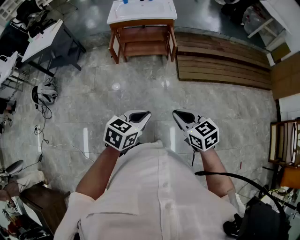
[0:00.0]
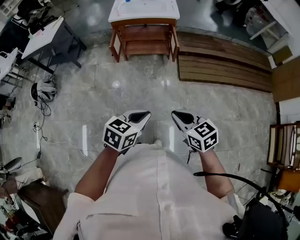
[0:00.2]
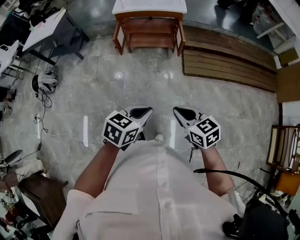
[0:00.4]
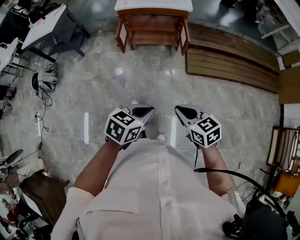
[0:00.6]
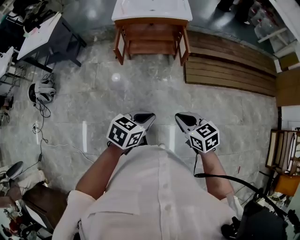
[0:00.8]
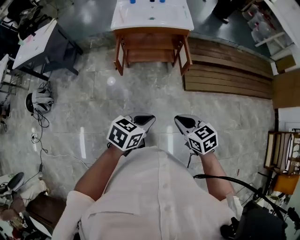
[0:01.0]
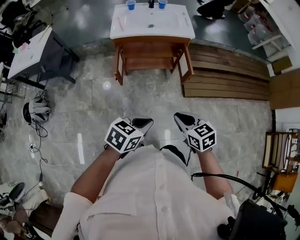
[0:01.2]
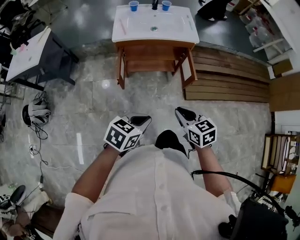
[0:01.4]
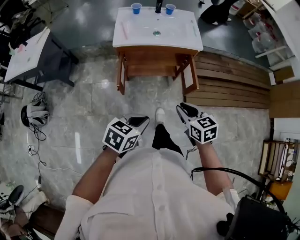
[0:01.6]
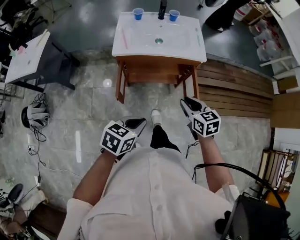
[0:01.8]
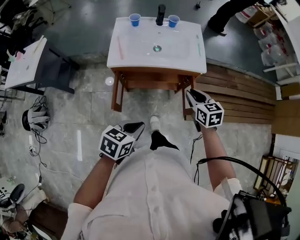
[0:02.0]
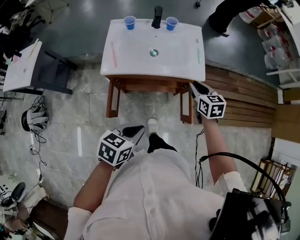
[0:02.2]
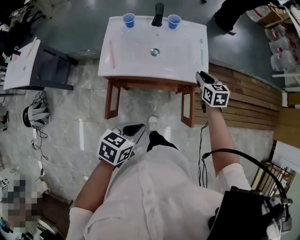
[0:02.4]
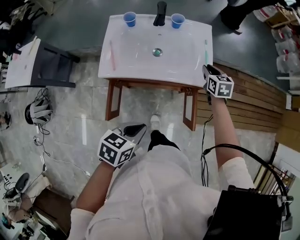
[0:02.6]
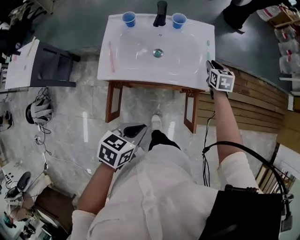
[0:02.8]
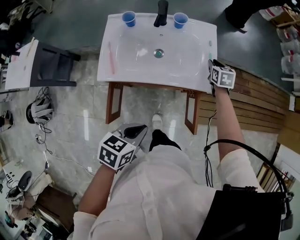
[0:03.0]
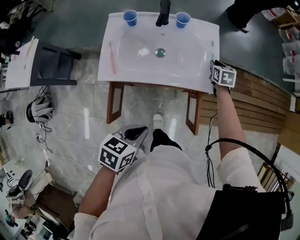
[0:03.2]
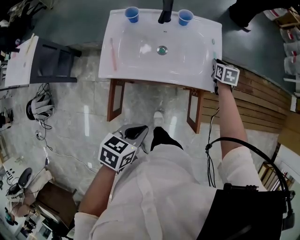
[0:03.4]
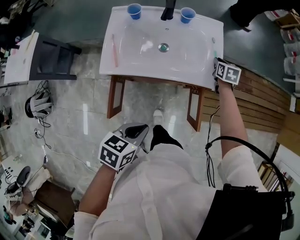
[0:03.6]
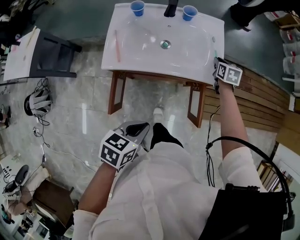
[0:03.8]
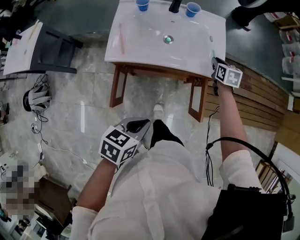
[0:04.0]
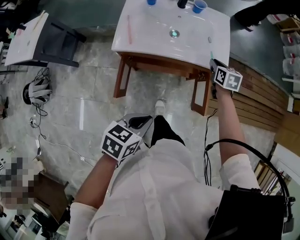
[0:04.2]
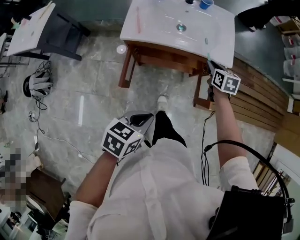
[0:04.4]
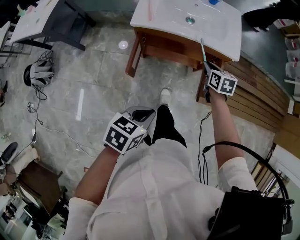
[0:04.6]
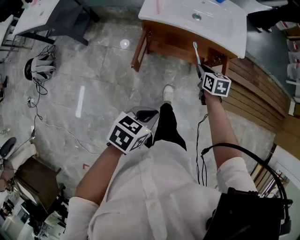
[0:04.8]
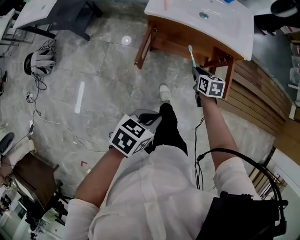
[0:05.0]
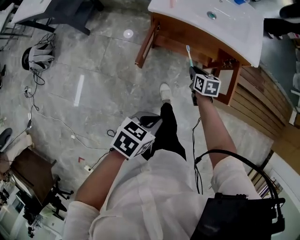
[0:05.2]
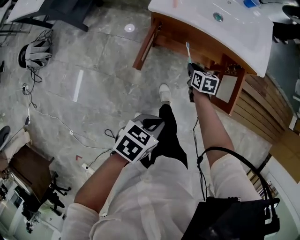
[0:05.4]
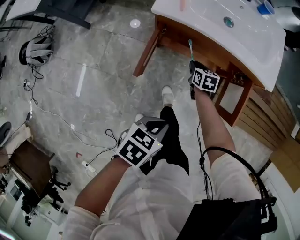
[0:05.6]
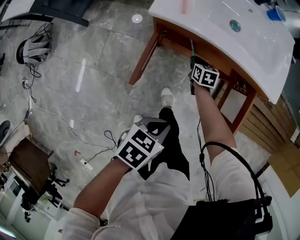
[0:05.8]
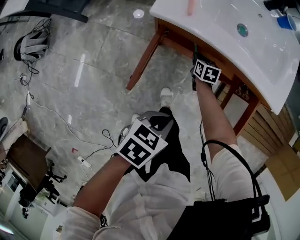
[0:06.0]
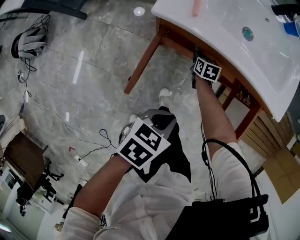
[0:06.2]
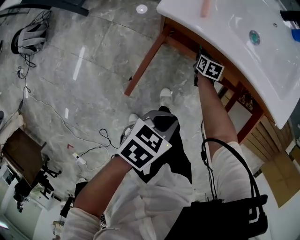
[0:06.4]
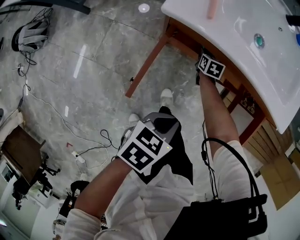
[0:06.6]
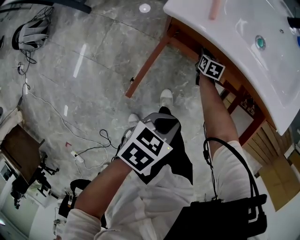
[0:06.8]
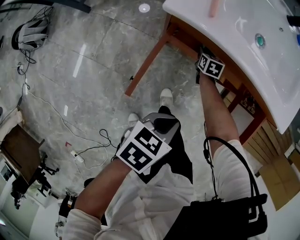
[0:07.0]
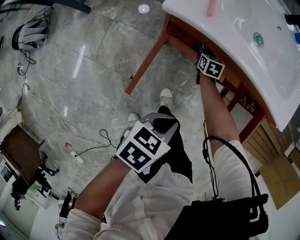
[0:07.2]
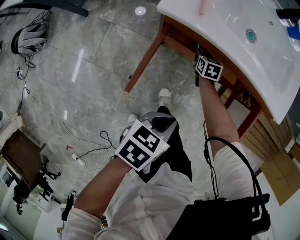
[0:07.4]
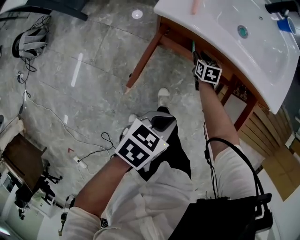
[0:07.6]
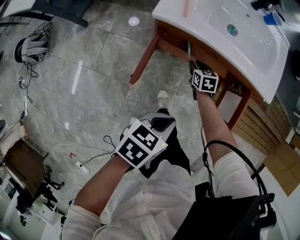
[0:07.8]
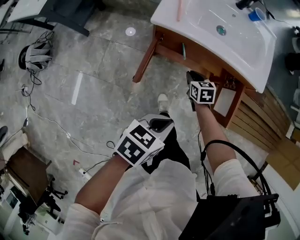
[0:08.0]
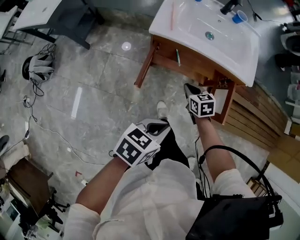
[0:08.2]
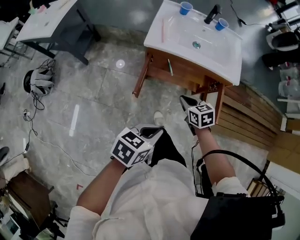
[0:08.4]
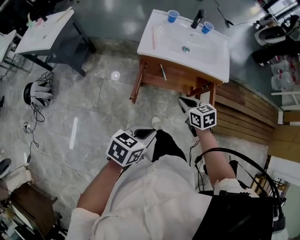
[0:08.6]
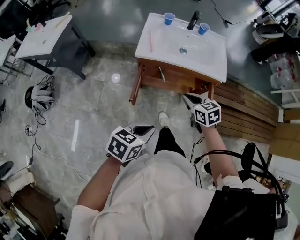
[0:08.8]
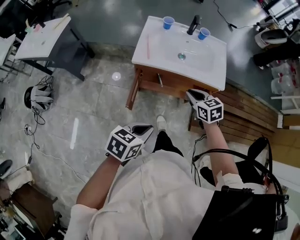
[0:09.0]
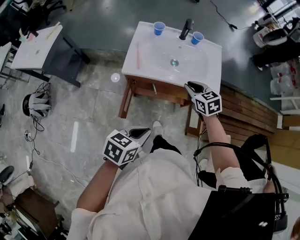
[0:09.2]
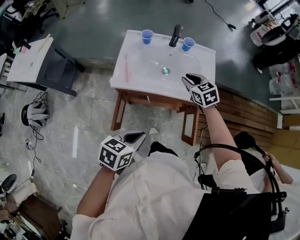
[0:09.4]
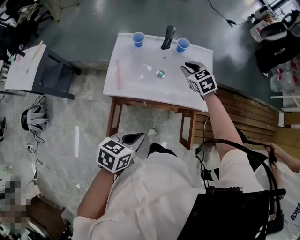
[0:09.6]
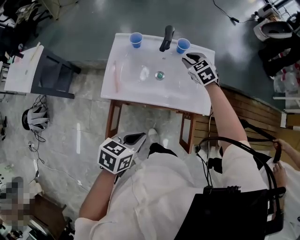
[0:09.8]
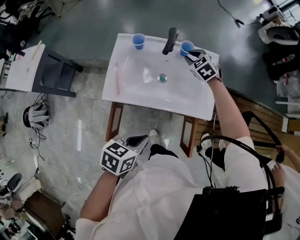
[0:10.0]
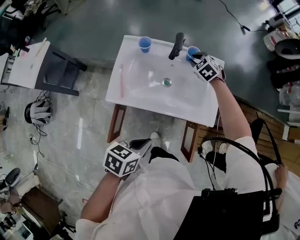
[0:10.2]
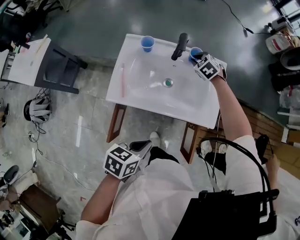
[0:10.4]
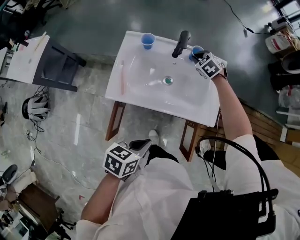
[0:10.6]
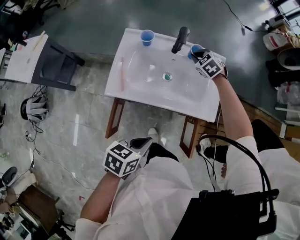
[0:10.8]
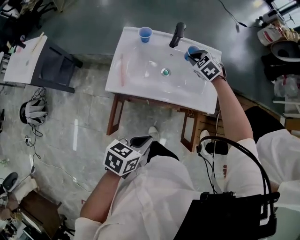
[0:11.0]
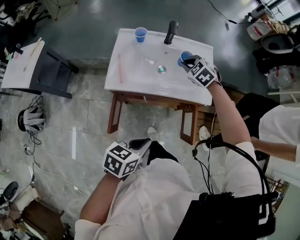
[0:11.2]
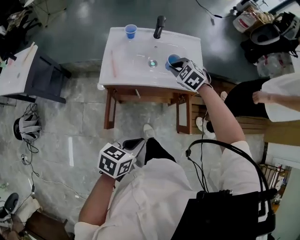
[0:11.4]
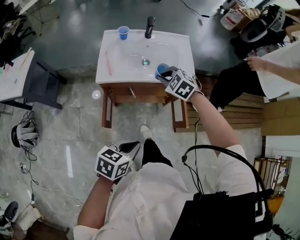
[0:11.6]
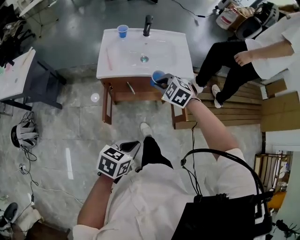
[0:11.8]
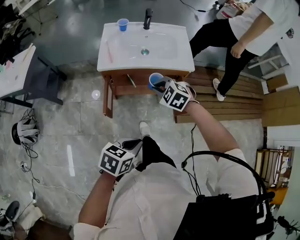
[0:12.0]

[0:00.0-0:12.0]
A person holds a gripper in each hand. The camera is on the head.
0:00.0 to 0:01.6: The two grippers travel together, forward and to the left, roughly 40 cm.
0:01.6 to 0:03.0: The left gripper shifts about 30 cm forward; the right gripper goes approximately 60 cm forward.
0:03.0 to 0:04.4: Both grippers move backward, about 20 cm.
0:04.4 to 0:06.0: The right gripper moves downward and to the left, approximately 40 cm. Meanwhile the left gripper is displaced downward by about 20 cm.
0:06.0 to 0:07.6: The right gripper goes downward and returns, about 5 cm each way.
0:07.6 to 0:09.0: The right gripper heads upward, covering approximately 40 cm, and closes up. The left gripper goes roughly 20 cm upward.
0:09.0 to 0:10.4: The right gripper heads forward, covering approximately 40 cm, and changes its angle by some 40 degrees. The left gripper shifts approximately 20 cm forward.
0:10.4 to 0:12.0: The left gripper heads backward, covering approximately 30 cm, while the right gripper travels backward by approximately 50 cm.

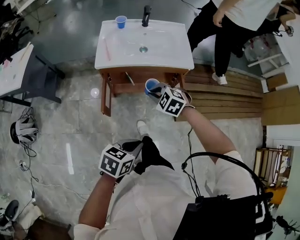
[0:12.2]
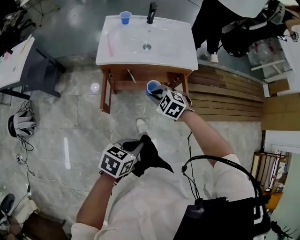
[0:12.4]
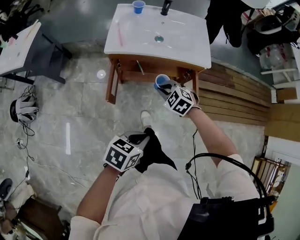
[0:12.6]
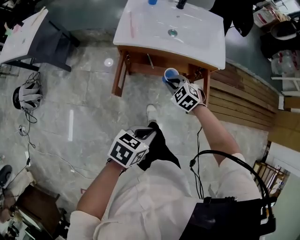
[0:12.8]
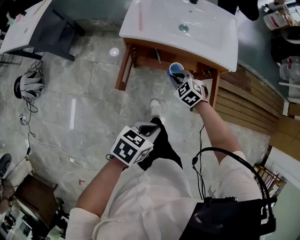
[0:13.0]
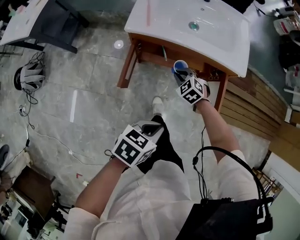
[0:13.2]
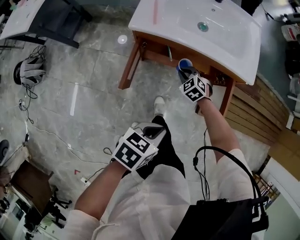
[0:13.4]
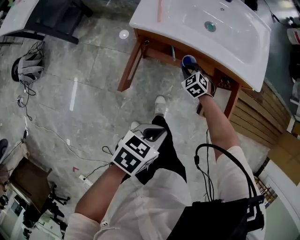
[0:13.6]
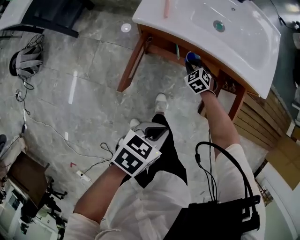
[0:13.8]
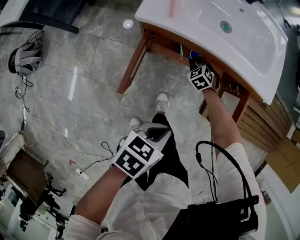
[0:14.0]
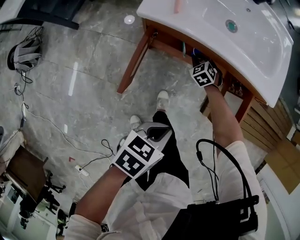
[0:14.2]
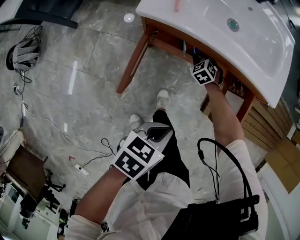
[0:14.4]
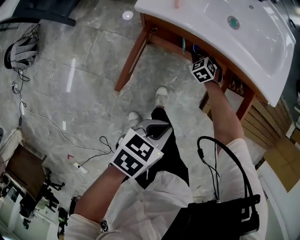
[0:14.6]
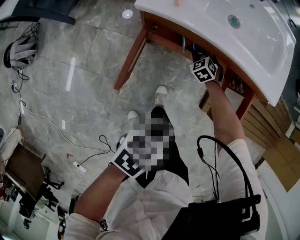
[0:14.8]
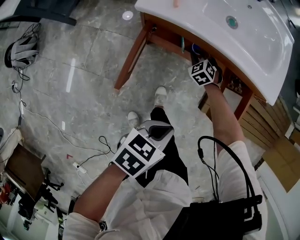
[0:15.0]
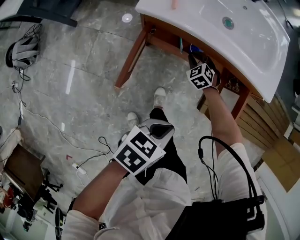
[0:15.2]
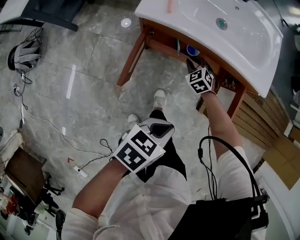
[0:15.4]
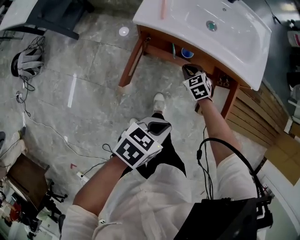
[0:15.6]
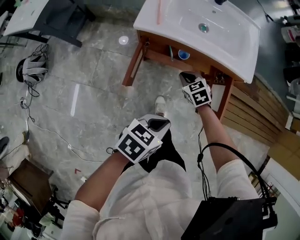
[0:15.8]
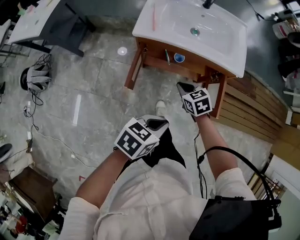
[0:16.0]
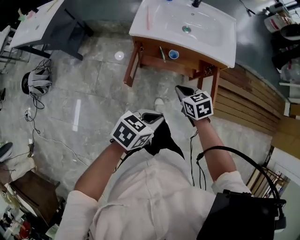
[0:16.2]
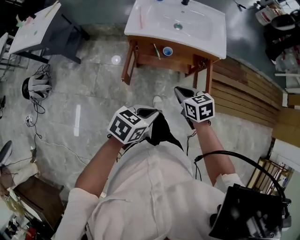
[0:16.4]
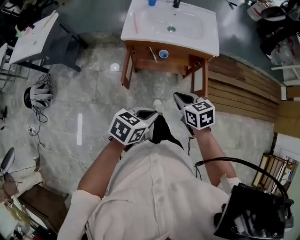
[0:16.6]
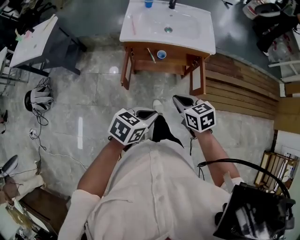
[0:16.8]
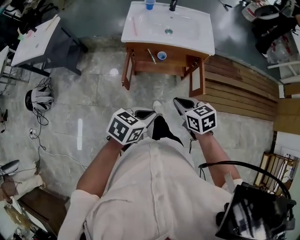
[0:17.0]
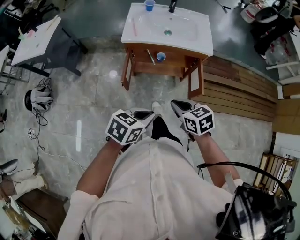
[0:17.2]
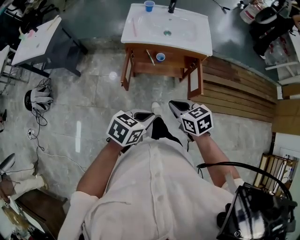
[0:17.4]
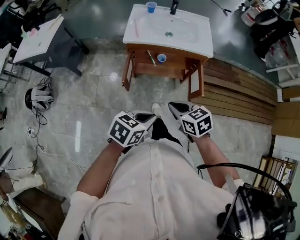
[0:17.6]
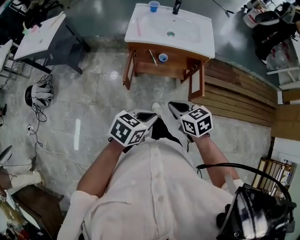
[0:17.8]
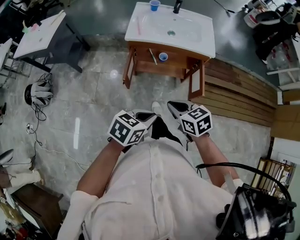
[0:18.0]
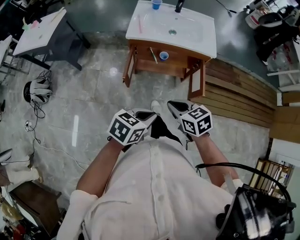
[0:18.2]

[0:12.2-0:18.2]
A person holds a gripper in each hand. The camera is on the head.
0:12.2 to 0:13.8: The left gripper travels downward and forward by roughly 20 cm, while the right gripper goes some 35 cm downward and forward.
0:15.2 to 0:16.6: The right gripper goes about 50 cm upward and backward, and rotates around the line of its fingers by about 50 degrees, clockwise from behind; the left gripper moves upward and backward, some 20 cm.
0:16.6 to 0:18.2: The right gripper goes about 10 cm backward.

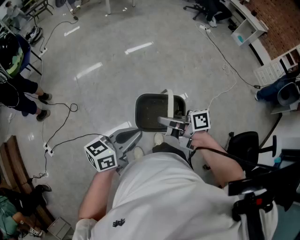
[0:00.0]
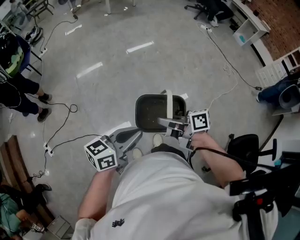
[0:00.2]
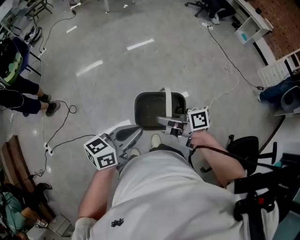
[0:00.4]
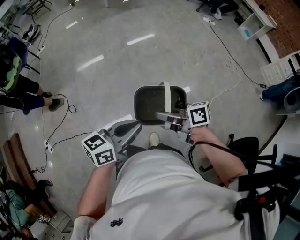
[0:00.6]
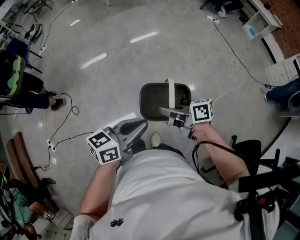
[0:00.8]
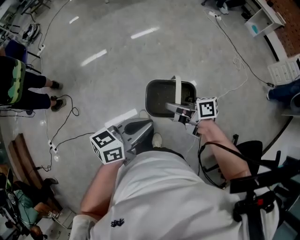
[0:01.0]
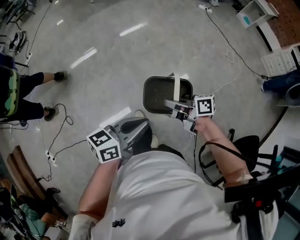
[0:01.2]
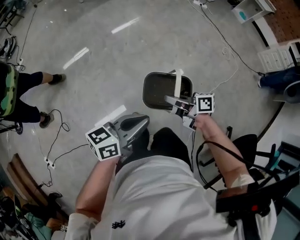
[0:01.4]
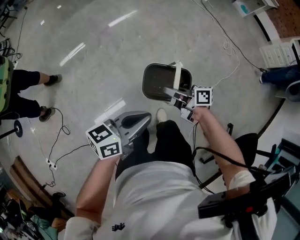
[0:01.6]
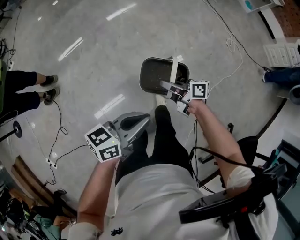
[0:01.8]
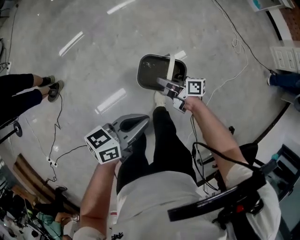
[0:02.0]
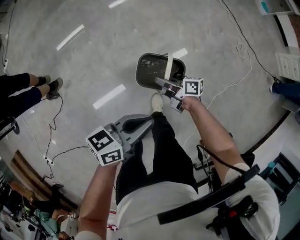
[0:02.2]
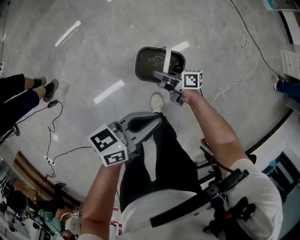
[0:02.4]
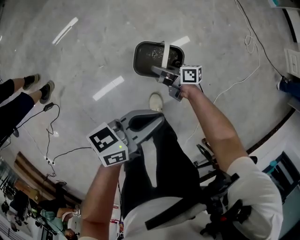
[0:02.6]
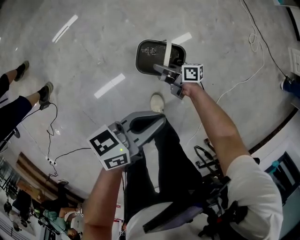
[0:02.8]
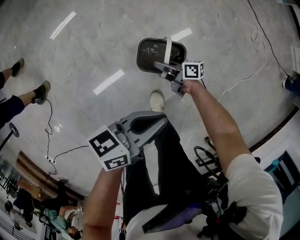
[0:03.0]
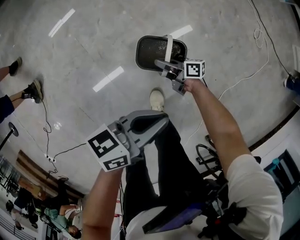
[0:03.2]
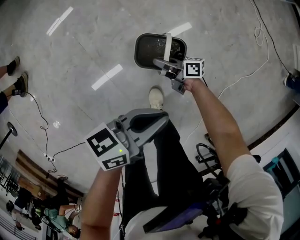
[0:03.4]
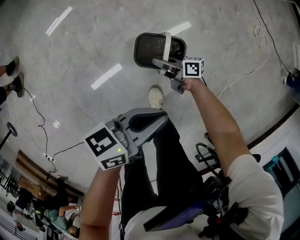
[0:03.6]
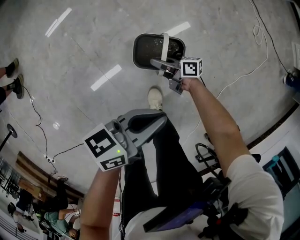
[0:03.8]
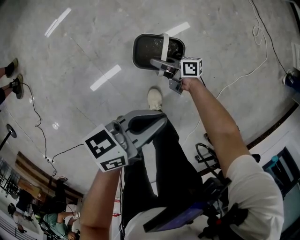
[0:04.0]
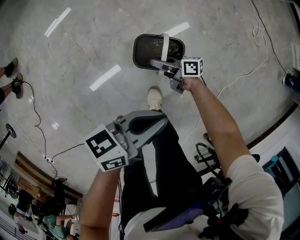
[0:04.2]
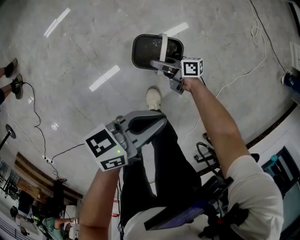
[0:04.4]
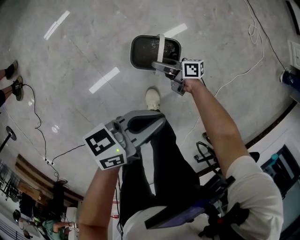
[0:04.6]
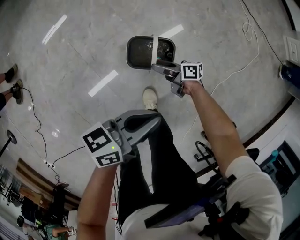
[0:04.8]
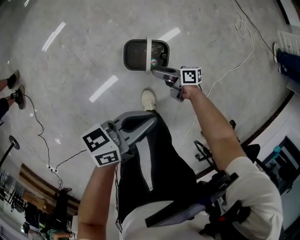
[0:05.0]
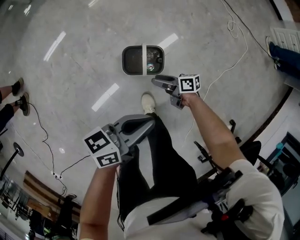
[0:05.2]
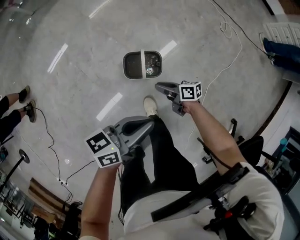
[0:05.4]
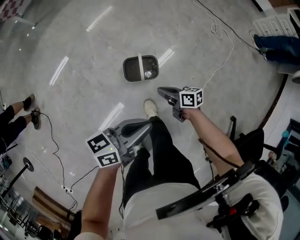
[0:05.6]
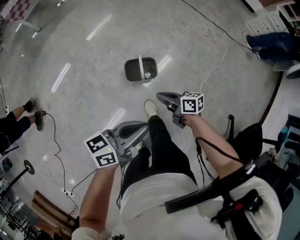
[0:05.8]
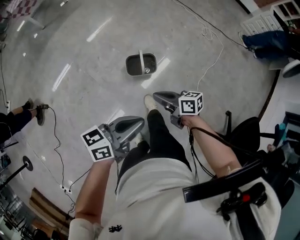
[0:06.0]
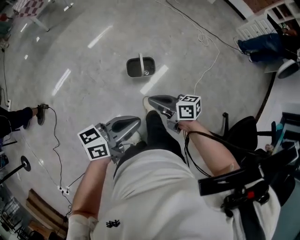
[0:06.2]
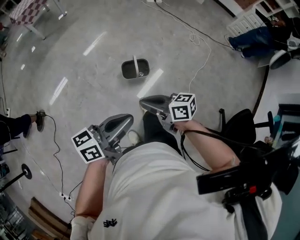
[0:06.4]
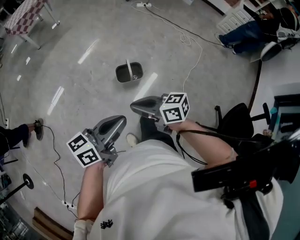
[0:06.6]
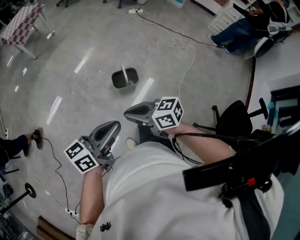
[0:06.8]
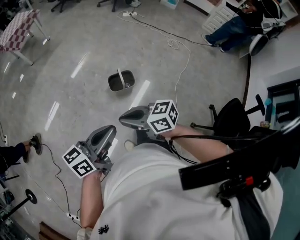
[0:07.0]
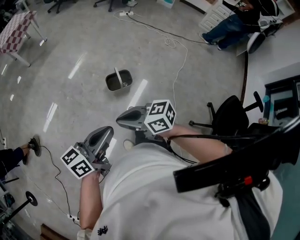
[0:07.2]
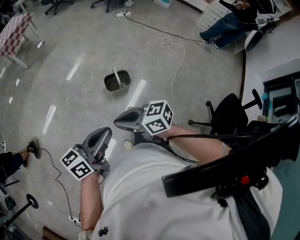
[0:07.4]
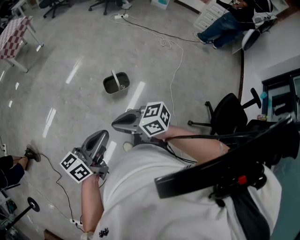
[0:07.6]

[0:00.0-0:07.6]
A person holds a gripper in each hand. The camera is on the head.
0:00.0 to 0:01.6: The two grippers travel together, about 40 cm.
0:01.6 to 0:03.0: The right gripper is displaced downward by approximately 40 cm, while the left gripper ends up some 40 cm from where it was.
0:03.0 to 0:04.6: The right gripper opens up.
0:04.6 to 0:06.0: The grippers both shift upward by roughly 35 cm. The right gripper swivels roughly 20 degrees, and closes its fingers.
0:06.0 to 0:07.6: The left gripper moves about 20 cm, while the right gripper ends up about 30 cm from where it was, and swivels roughly 20 degrees.
